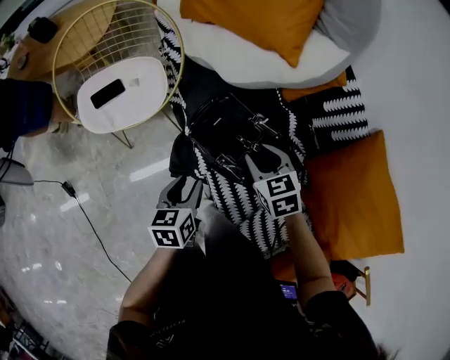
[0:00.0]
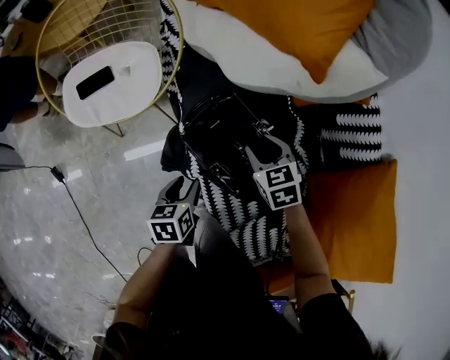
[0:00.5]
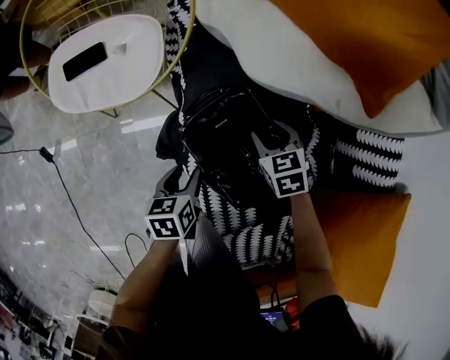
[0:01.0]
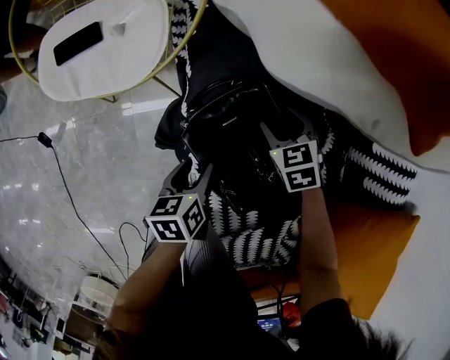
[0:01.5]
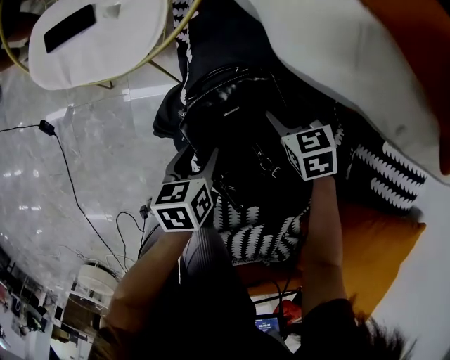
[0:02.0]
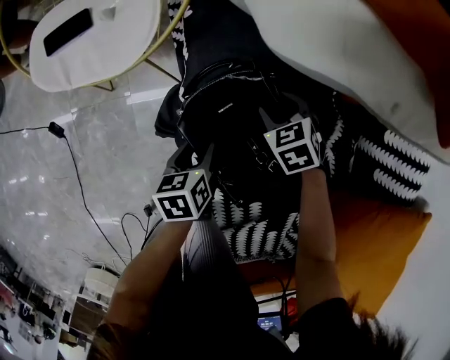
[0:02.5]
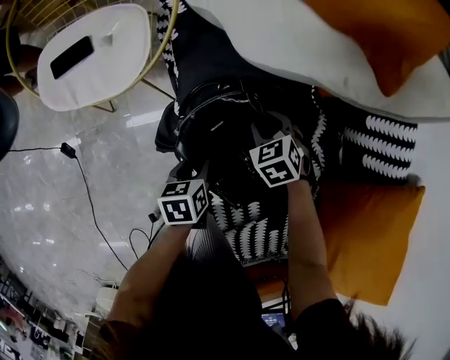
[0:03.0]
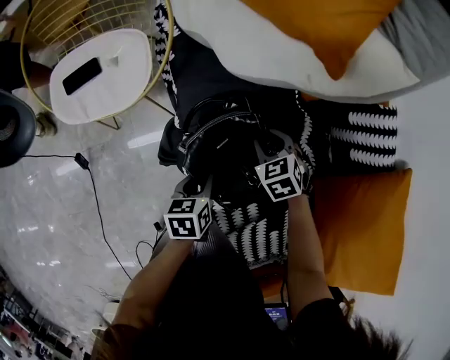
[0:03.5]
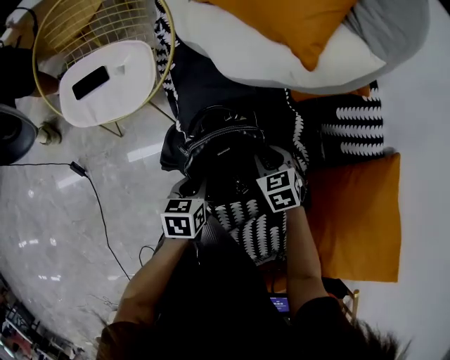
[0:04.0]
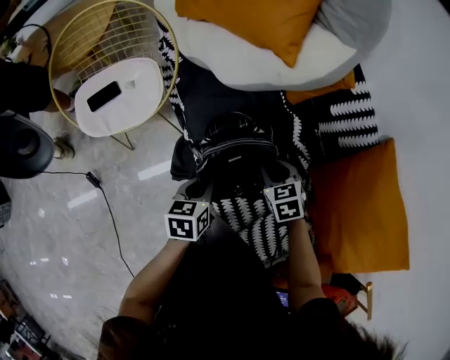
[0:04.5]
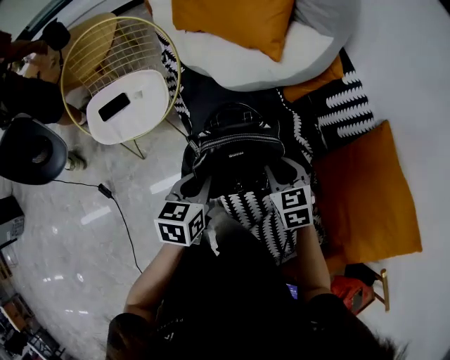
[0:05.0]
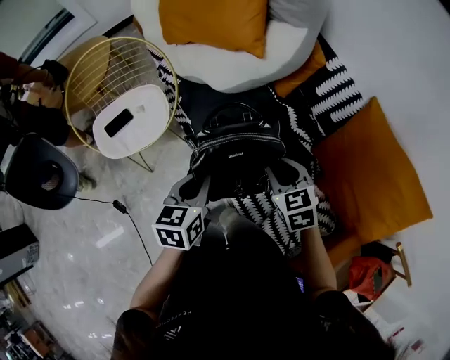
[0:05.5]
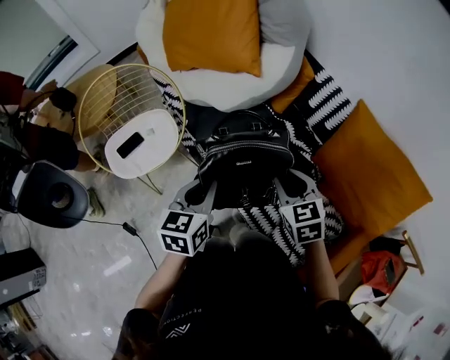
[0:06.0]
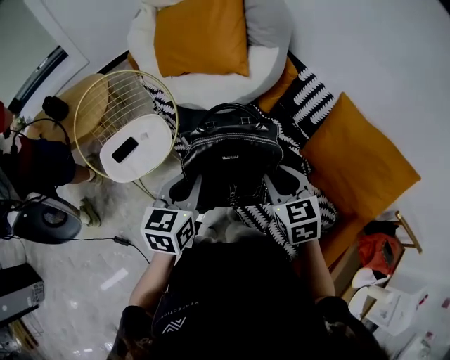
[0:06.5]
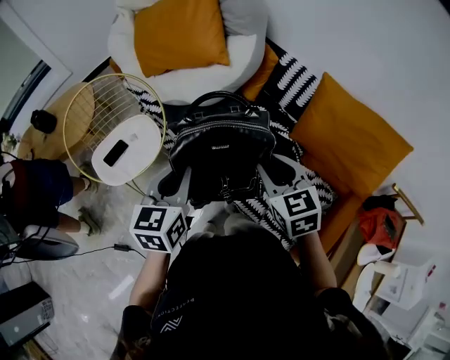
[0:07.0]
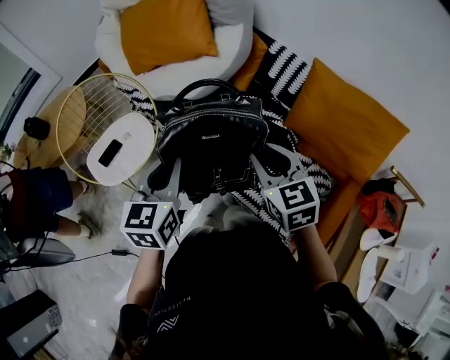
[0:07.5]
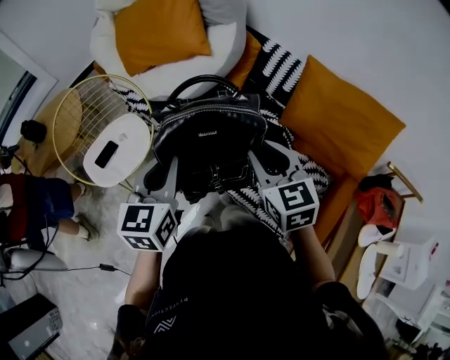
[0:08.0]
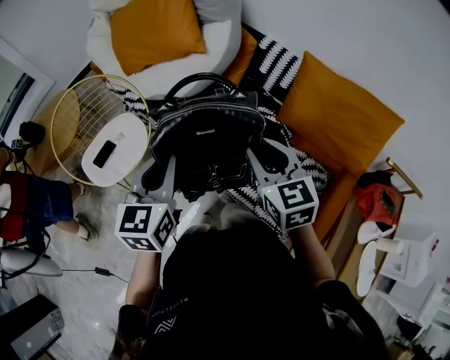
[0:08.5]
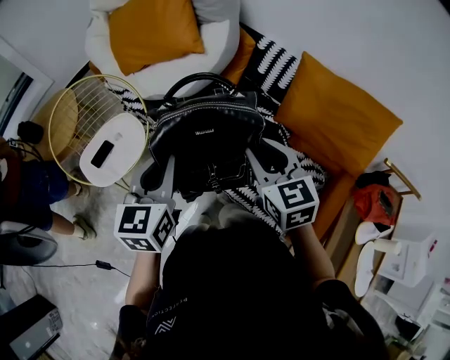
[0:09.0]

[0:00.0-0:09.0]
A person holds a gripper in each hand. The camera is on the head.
0:00.0 to 0:02.0: The right gripper goes about 30 cm downward and forward, rotates roughly 20 degrees, and opens. Meanwhile the left gripper shifts roughly 20 cm downward, and changes its angle by approximately 30 degrees.
0:02.0 to 0:04.5: The left gripper is displaced upward and backward by about 15 cm, swivels some 30 degrees, and closes. Meanwhile the right gripper moves backward and upward, some 25 cm, swivels approximately 20 degrees, and closes.
0:04.5 to 0:07.0: The left gripper is displaced upward by some 30 cm, and changes its angle by roughly 40 degrees; the right gripper moves upward and backward, about 30 cm, and turns by approximately 30 degrees.
0:07.0 to 0:09.0: There are only small adjustments of the grippers.

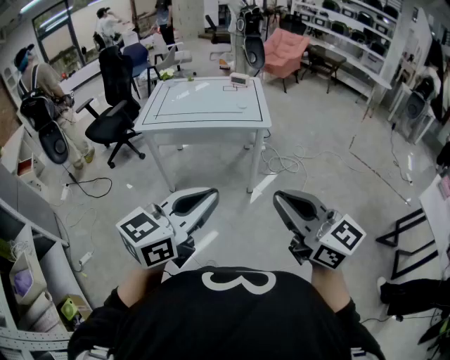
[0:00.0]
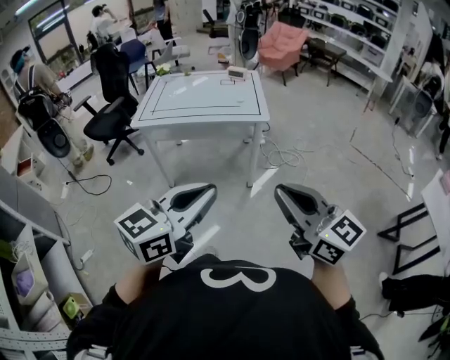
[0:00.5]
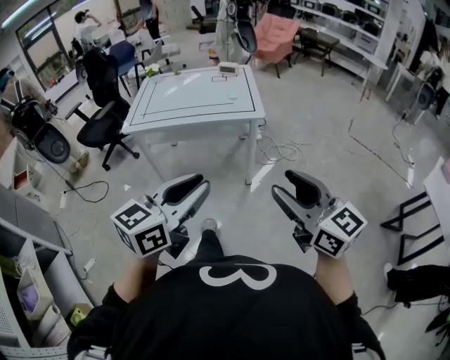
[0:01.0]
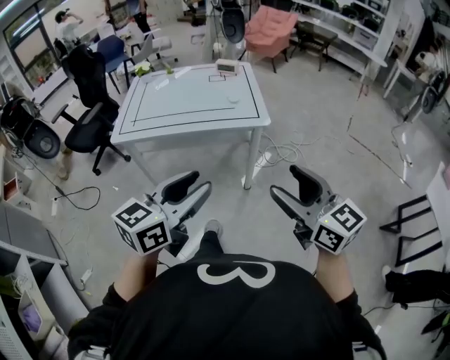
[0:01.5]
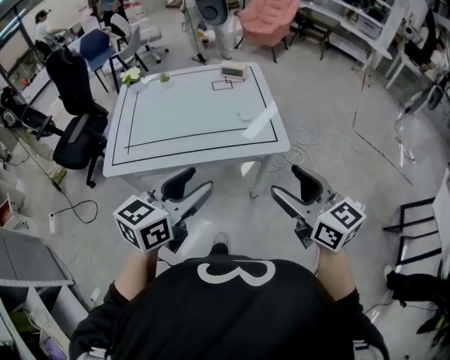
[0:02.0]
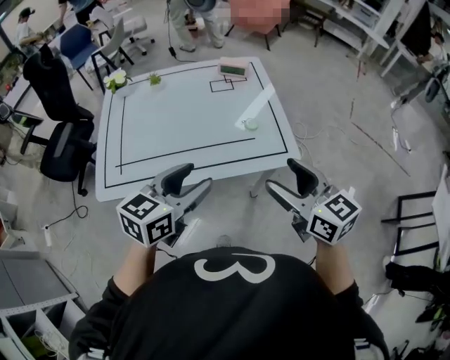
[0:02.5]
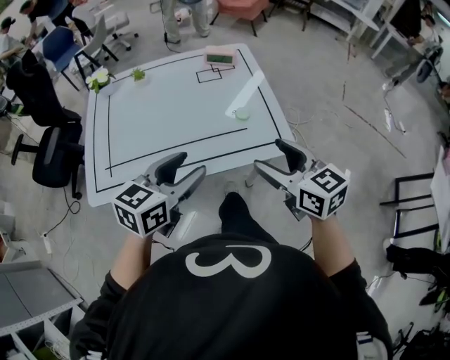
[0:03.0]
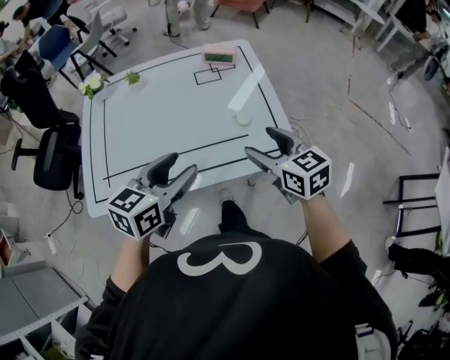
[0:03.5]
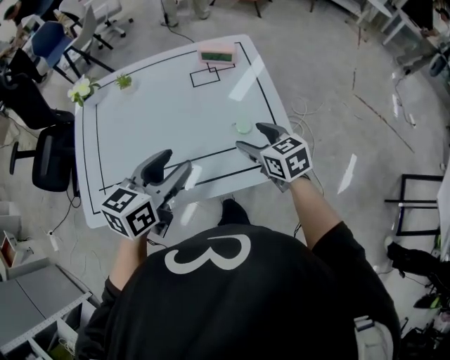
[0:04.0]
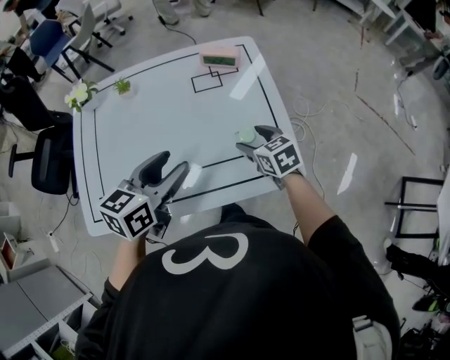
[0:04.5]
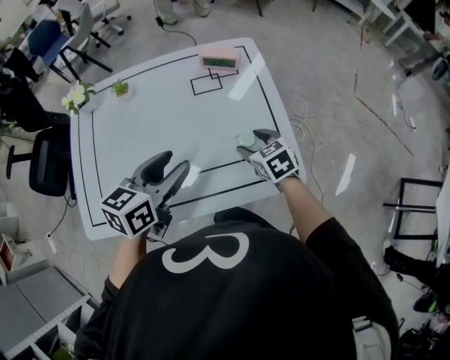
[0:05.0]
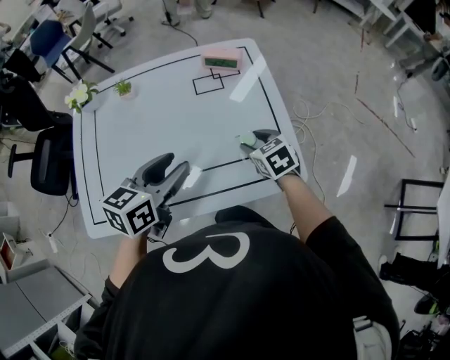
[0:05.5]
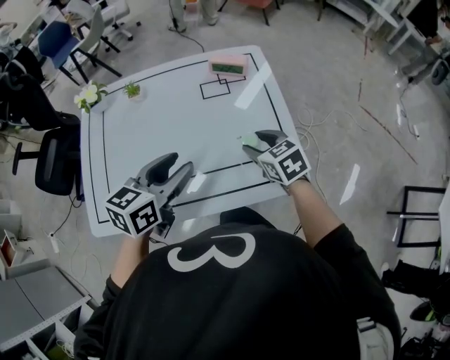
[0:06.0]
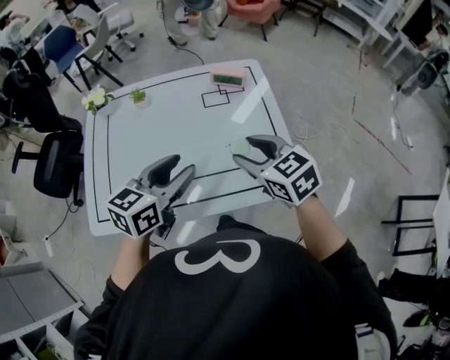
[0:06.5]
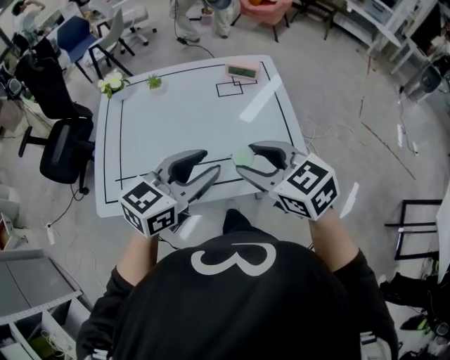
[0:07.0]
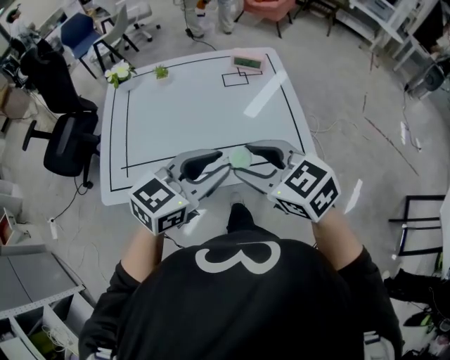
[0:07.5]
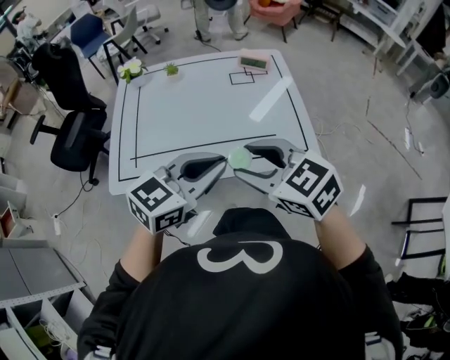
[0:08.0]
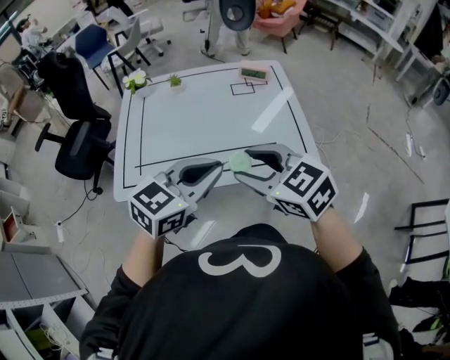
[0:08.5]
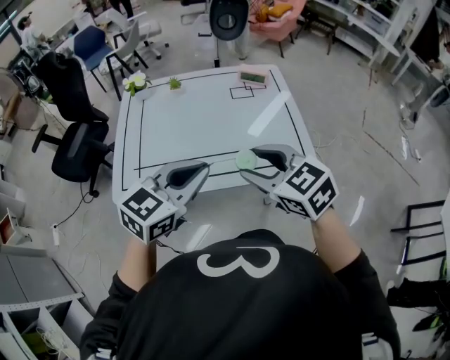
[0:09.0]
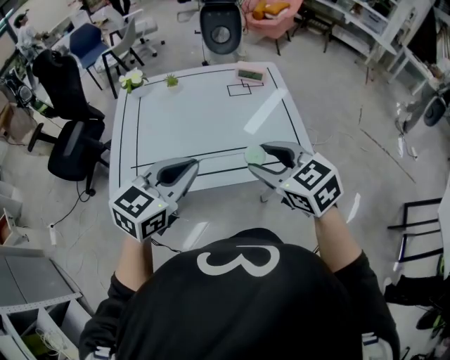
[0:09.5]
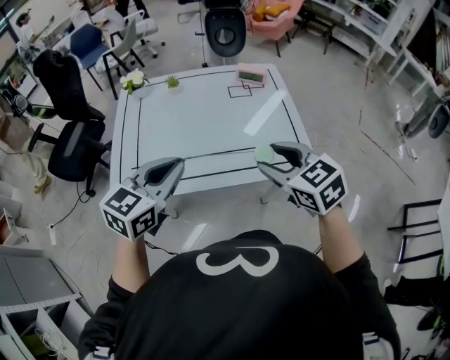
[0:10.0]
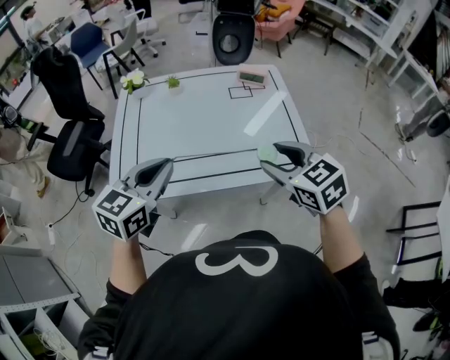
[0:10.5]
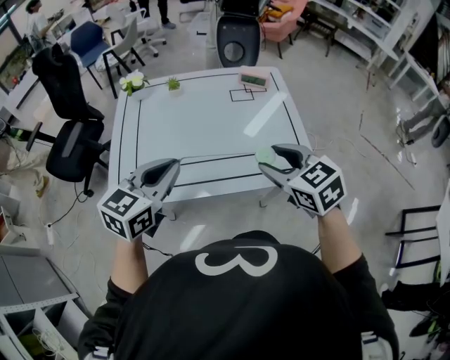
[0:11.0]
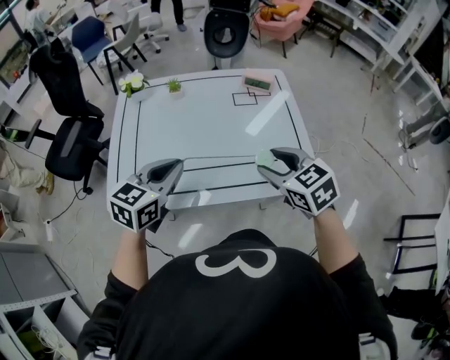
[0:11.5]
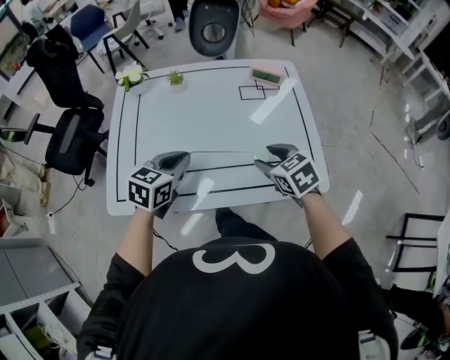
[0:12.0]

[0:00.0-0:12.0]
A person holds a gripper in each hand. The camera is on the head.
0:00.0 to 0:02.0: The two grippers travel together, forward, some 40 cm. The right gripper opens up; the left gripper opens up.
0:02.0 to 0:04.0: The right gripper shifts some 40 cm forward and downward, and turns by about 30 degrees; the left gripper heads forward, covering some 25 cm.
0:06.0 to 0:08.0: The right gripper moves backward, upward and to the left, about 30 cm, and changes its angle by some 30 degrees; the left gripper is displaced backward and upward by roughly 20 cm, turns by about 20 degrees, and closes its fingers.
0:08.0 to 0:10.0: The right gripper heads to the right, covering some 5 cm. Meanwhile the left gripper moves to the left, approximately 10 cm.
0:10.0 to 0:12.0: The left gripper moves forward and downward, roughly 20 cm. The right gripper heads downward and forward, covering some 20 cm.

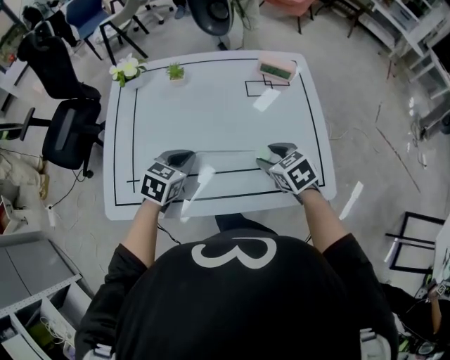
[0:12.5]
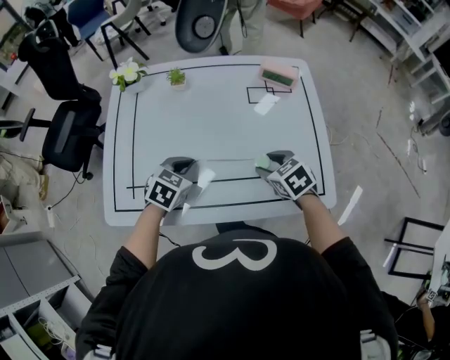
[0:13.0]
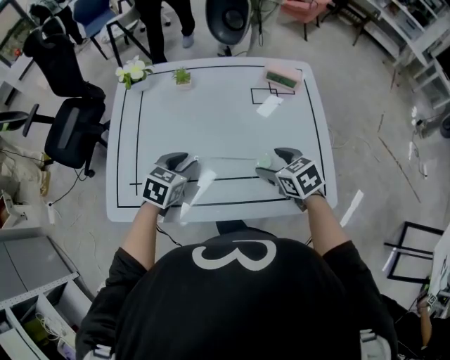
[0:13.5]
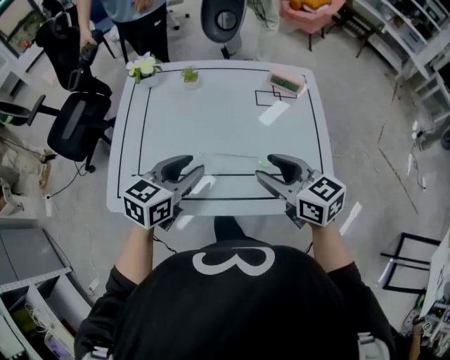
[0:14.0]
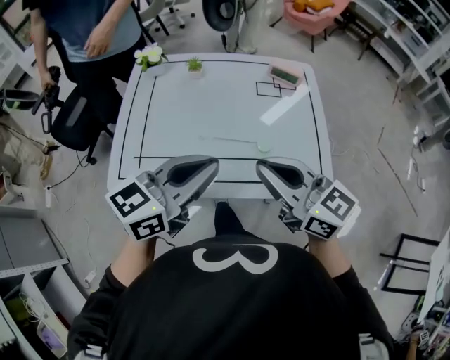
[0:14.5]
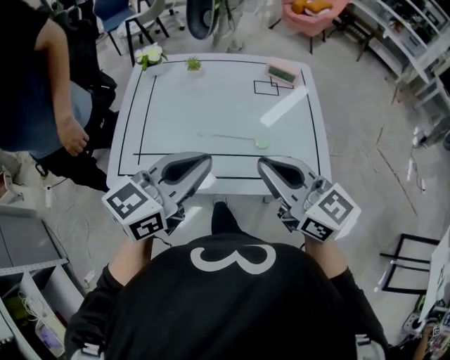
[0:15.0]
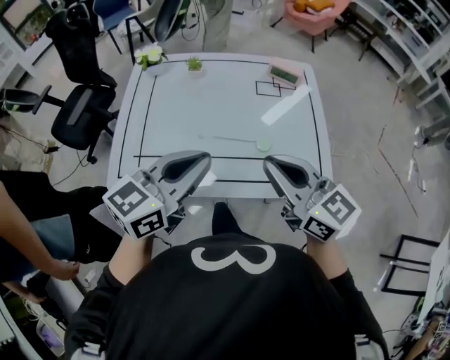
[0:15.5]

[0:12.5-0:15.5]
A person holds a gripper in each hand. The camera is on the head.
0:12.5 to 0:14.0: The left gripper travels upward and backward by approximately 10 cm, rotates some 20 degrees, and opens up. Meanwhile the right gripper moves upward, about 15 cm, and tips its fingers upward by some 30 degrees.
0:14.0 to 0:15.5: The two grippers go roughly 10 cm upward and backward. The right gripper closes its fingers, while the left gripper closes up.

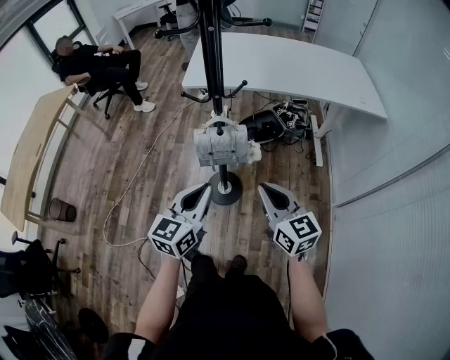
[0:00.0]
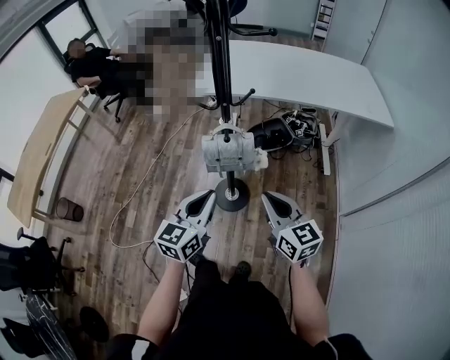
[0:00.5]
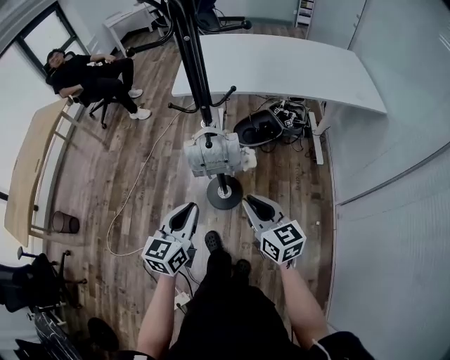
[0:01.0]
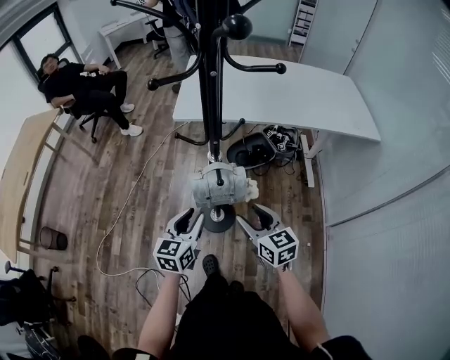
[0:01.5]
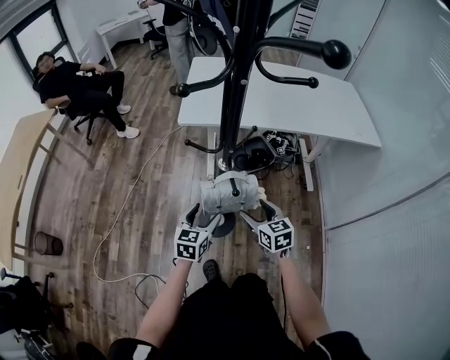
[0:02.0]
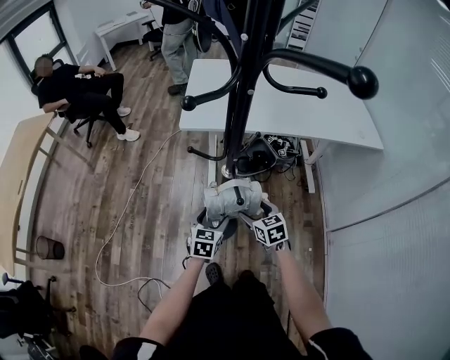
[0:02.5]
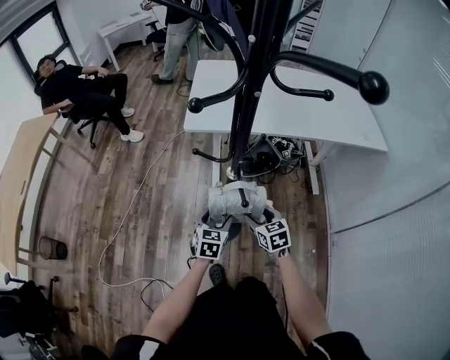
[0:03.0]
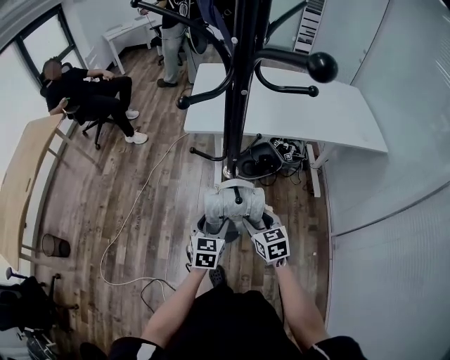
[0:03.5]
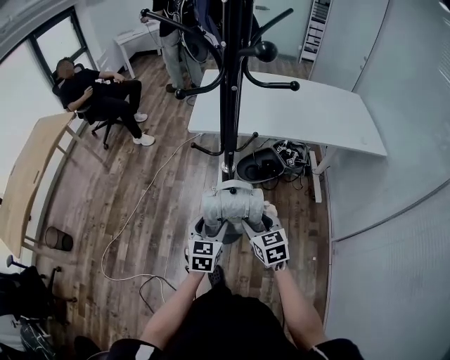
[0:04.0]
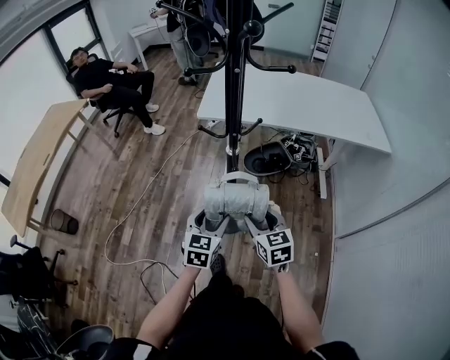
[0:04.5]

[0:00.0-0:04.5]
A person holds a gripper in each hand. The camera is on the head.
0:00.0 to 0:02.0: Both grippers travel together downward and forward, approximately 20 cm. The left gripper opens its fingers. The right gripper turns by roughly 20 degrees, and opens its fingers.
0:02.0 to 0:04.5: Both grippers move backward and upward, some 10 cm.
